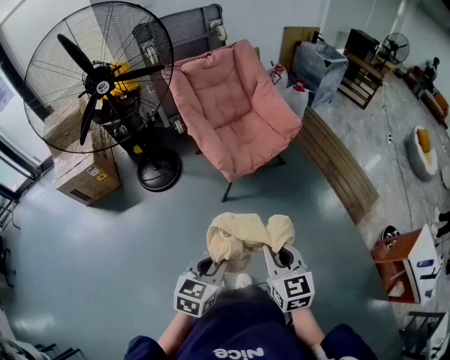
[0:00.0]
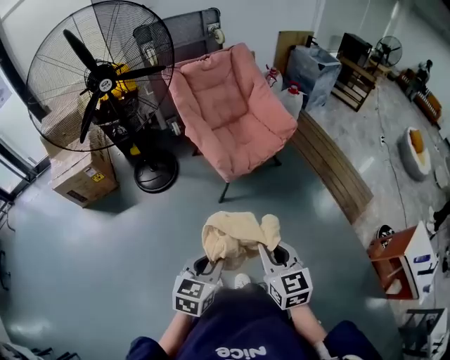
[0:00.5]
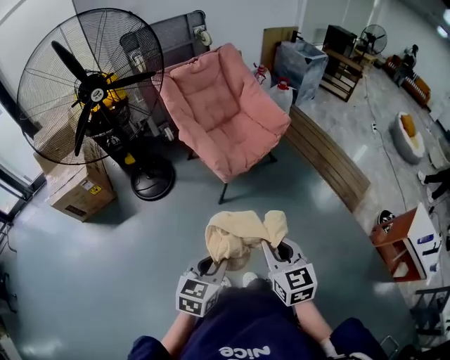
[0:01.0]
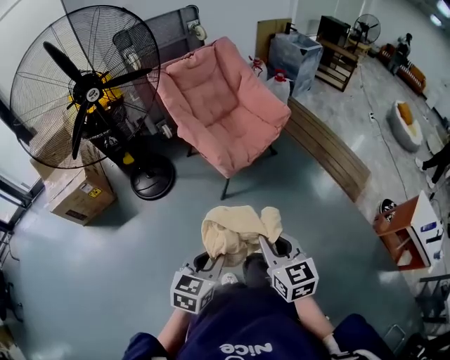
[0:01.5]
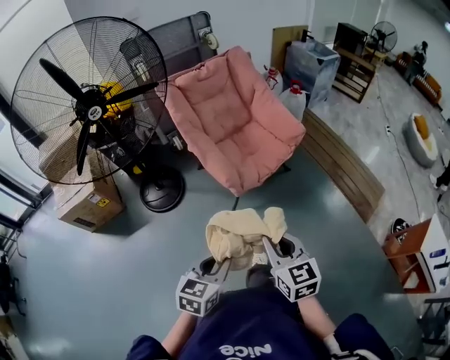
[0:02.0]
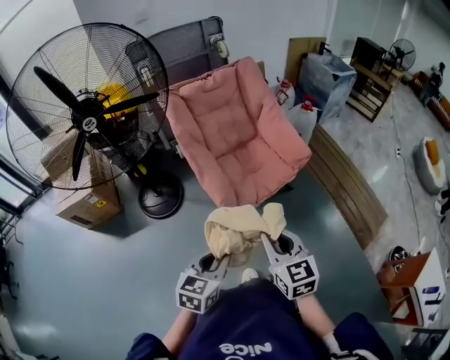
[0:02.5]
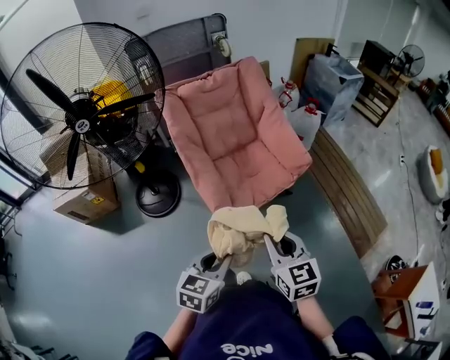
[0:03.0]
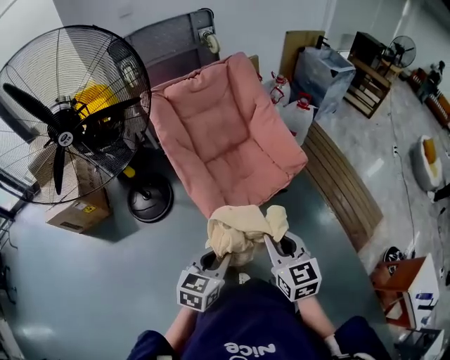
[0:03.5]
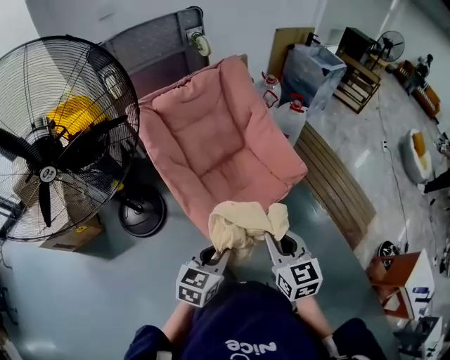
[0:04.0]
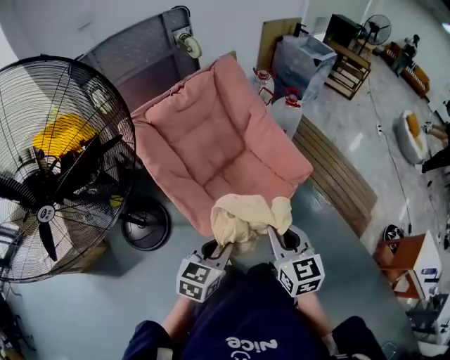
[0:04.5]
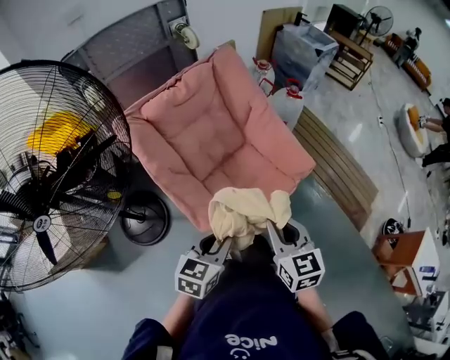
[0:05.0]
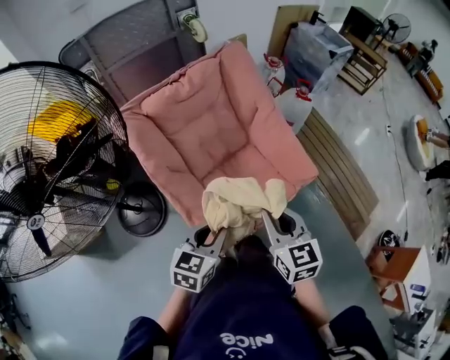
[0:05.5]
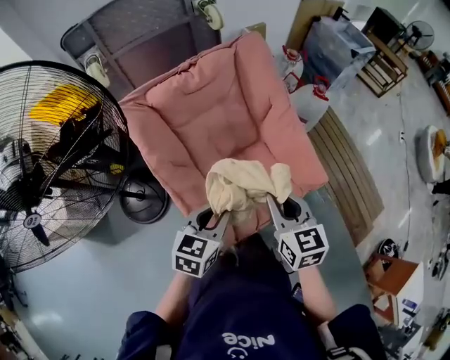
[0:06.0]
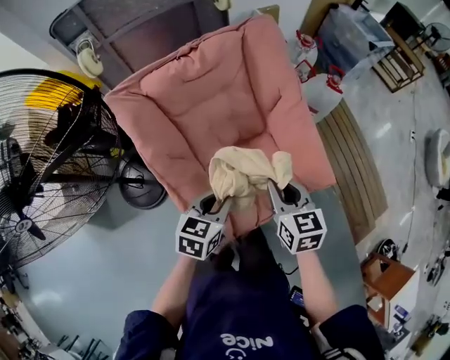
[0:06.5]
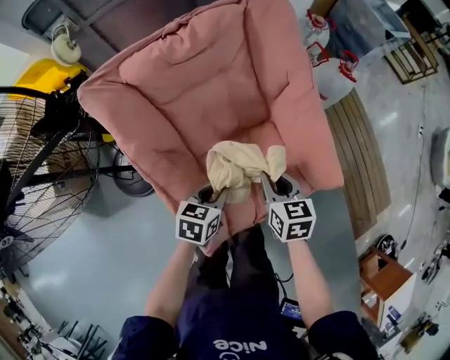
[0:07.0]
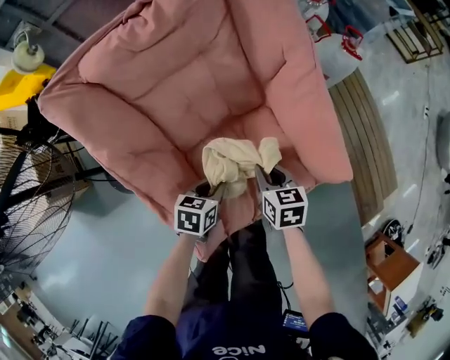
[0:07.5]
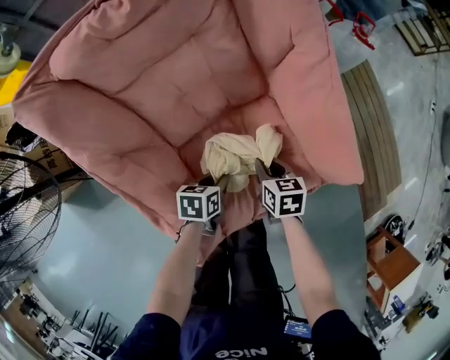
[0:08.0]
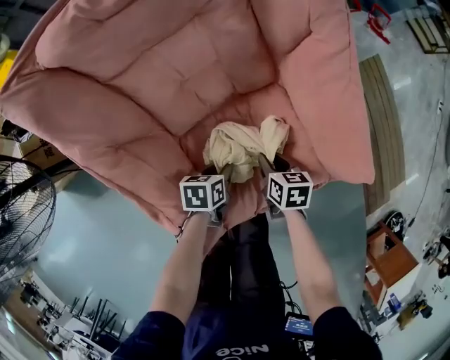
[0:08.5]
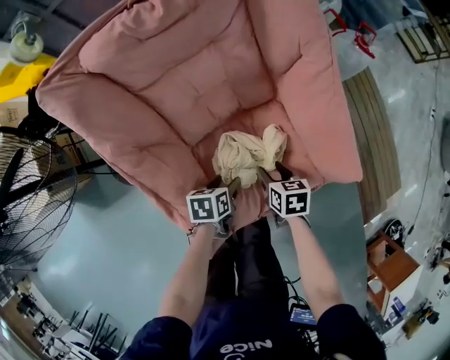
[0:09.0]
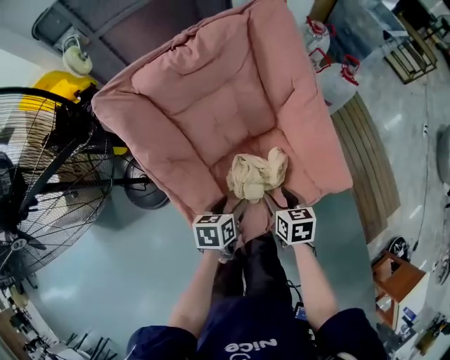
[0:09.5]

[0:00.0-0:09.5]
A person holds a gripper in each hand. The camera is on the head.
0:00.0 to 0:02.0: Both grippers move forward and to the left, approximately 15 cm.
0:02.0 to 0:04.0: The grippers both shift forward by roughly 35 cm.
0:04.0 to 0:05.5: The grippers both shift forward and to the left by approximately 20 cm.
0:05.5 to 0:07.5: Both grippers travel together downward and forward, some 40 cm. The left gripper rotates about 30 degrees, while the right gripper swivels about 30 degrees.
0:07.5 to 0:09.5: The right gripper heads backward, covering about 5 cm, goes downward and returns, roughly 15 cm each way, and opens up; the left gripper goes some 10 cm upward, and opens up.

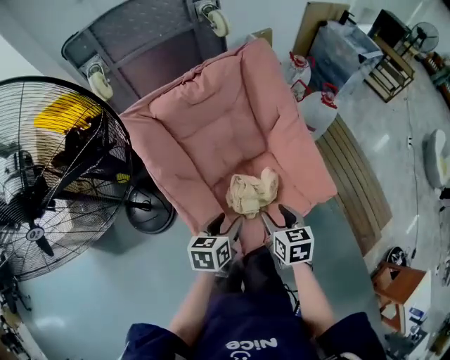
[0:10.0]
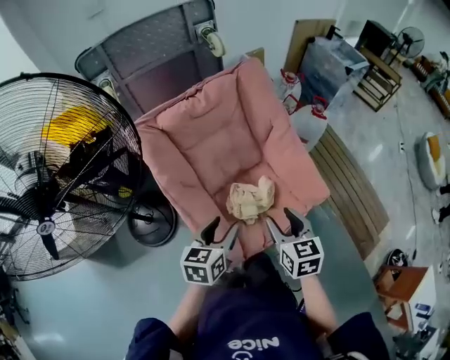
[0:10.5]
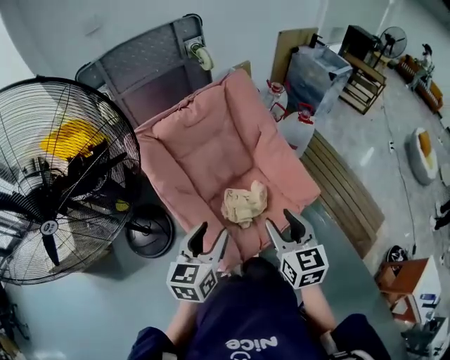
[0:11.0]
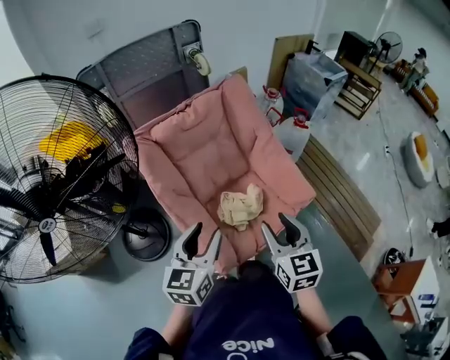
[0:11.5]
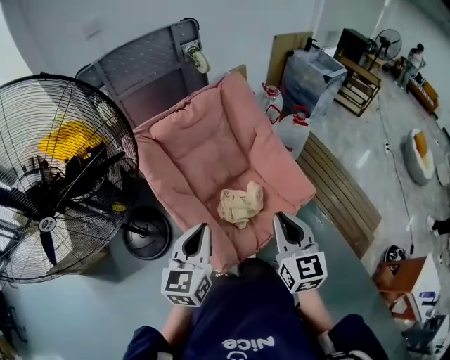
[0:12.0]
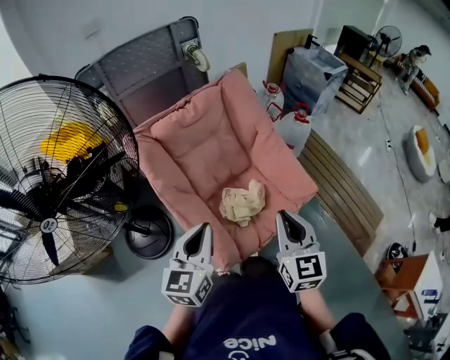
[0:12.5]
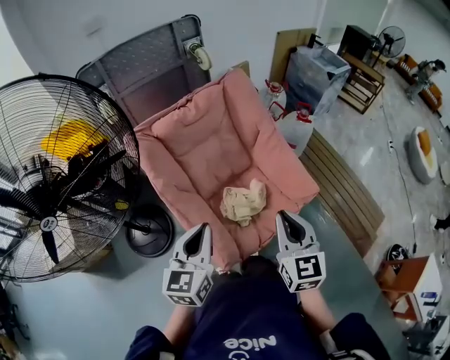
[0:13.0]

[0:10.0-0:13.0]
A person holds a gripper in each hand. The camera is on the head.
0:10.0 to 0:11.5: The two grippers go about 20 cm upward and backward. The left gripper changes its angle by about 30 degrees, while the right gripper turns by about 30 degrees.
0:11.5 to 0:13.0: The right gripper closes. Meanwhile the left gripper closes up.

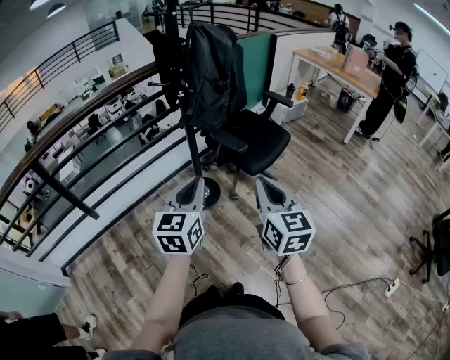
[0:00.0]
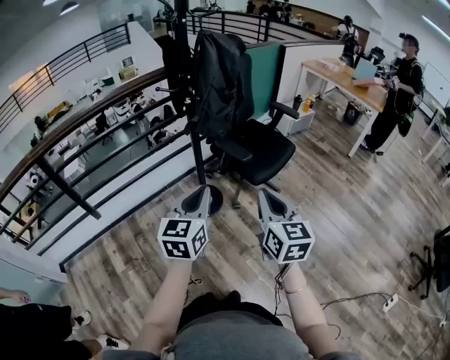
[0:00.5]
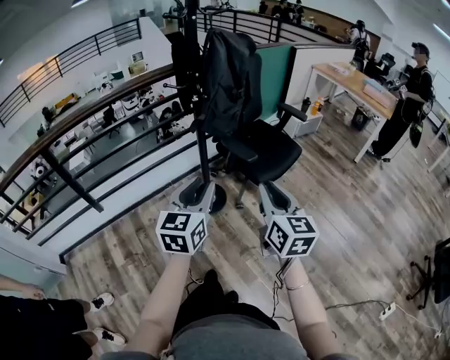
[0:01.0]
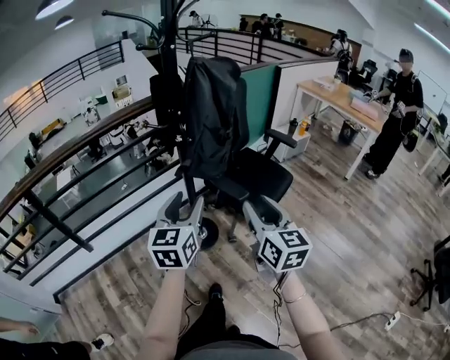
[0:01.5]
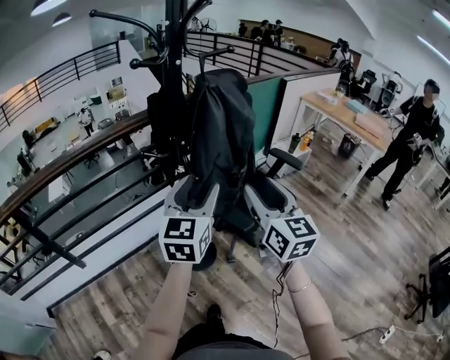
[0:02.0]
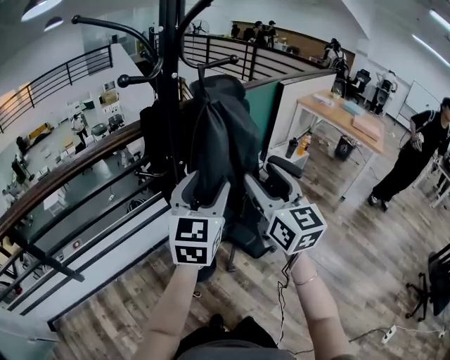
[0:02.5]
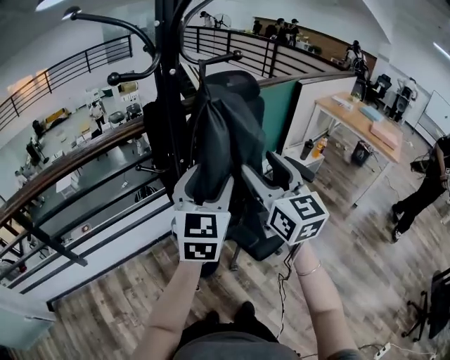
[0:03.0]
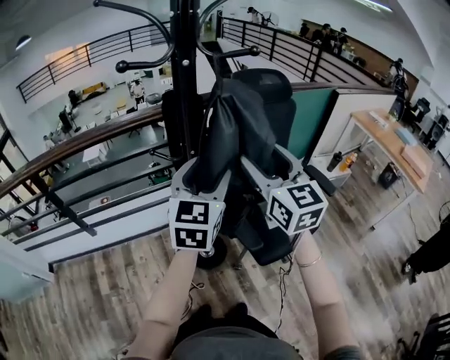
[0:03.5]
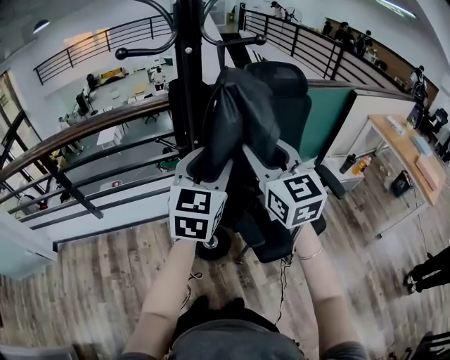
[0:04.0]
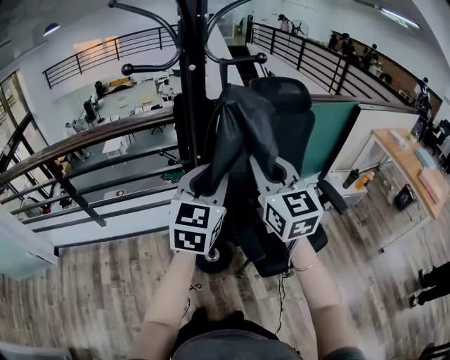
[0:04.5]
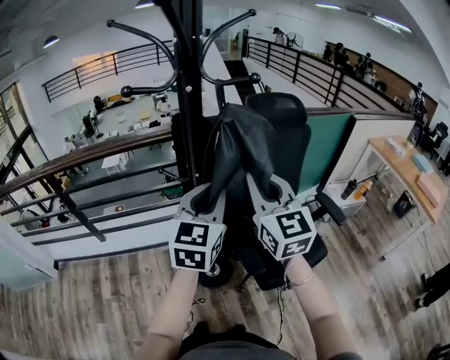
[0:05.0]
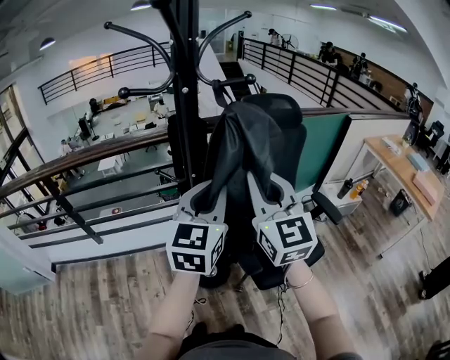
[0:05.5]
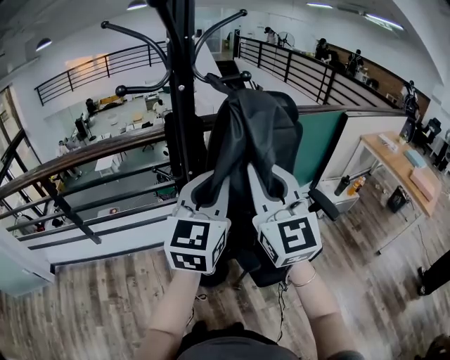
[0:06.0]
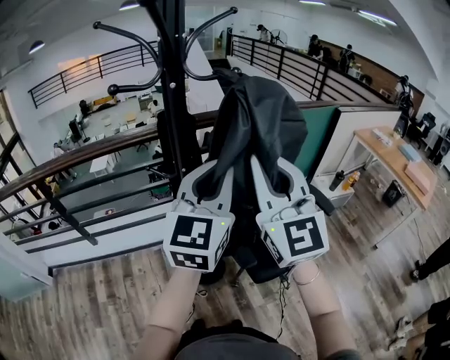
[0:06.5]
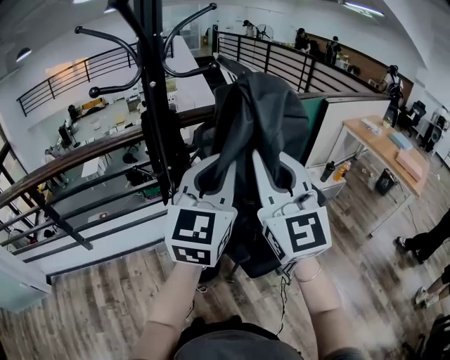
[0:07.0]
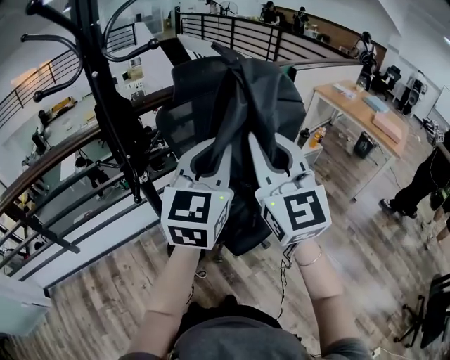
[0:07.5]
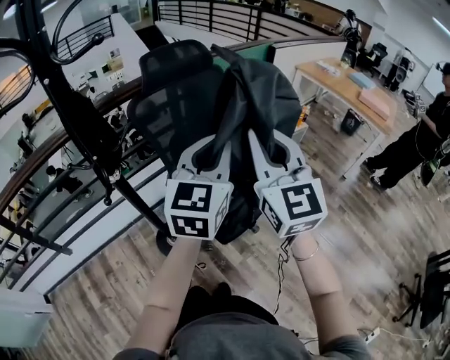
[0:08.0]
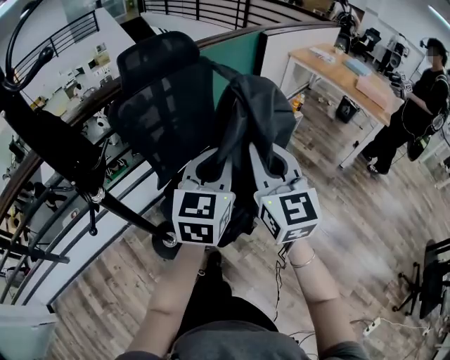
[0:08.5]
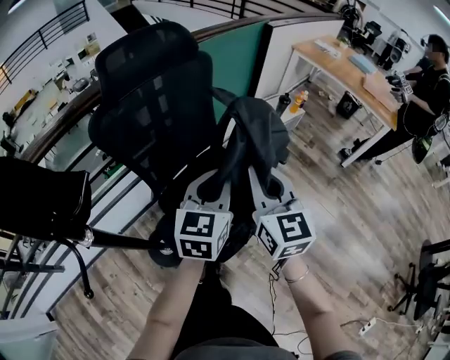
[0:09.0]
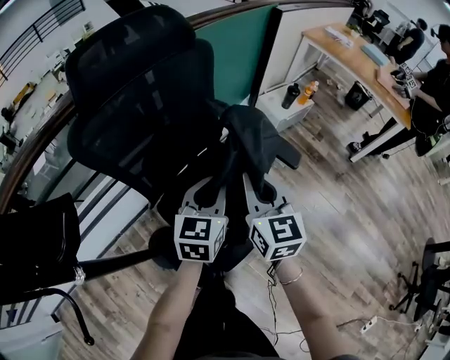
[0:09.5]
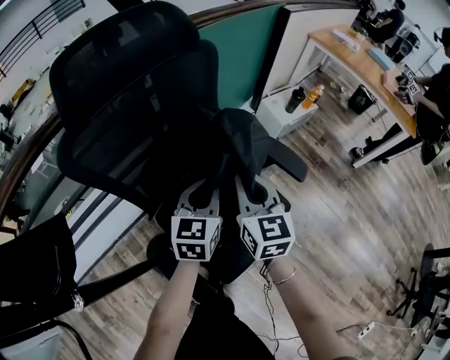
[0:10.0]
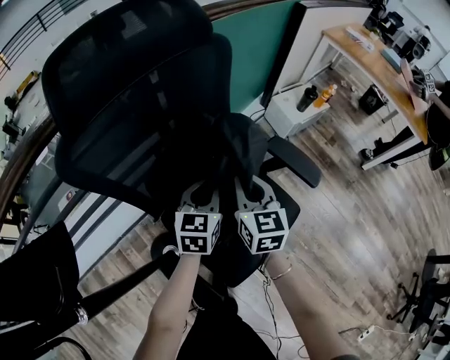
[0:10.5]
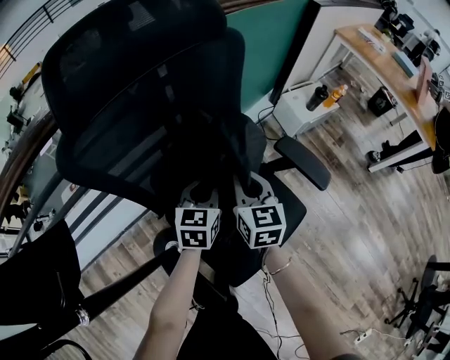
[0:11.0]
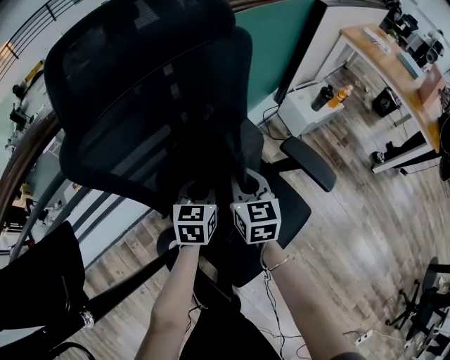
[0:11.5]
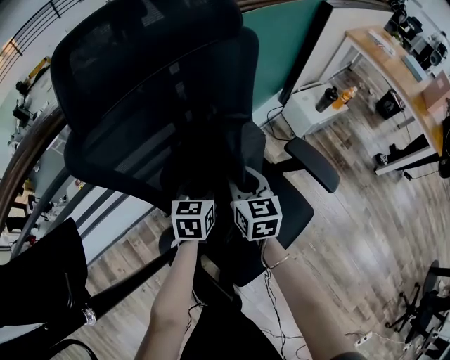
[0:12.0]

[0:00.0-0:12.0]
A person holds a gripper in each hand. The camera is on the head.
0:00.0 to 0:02.0: Both grippers travel together forward, about 30 cm. The left gripper opens; the right gripper opens.
0:02.0 to 0:04.0: The right gripper travels forward by roughly 15 cm, and rotates about 30 degrees, while the left gripper moves forward, about 10 cm, and turns by some 20 degrees.
0:04.0 to 0:06.0: Both grippers move upward, roughly 5 cm. The right gripper closes up, while the left gripper closes up.
0:06.0 to 0:08.0: The two grippers go some 20 cm to the right. The right gripper swivels some 20 degrees. Meanwhile the left gripper swivels roughly 20 degrees.
0:08.0 to 0:10.0: The two grippers go approximately 40 cm downward and forward. The right gripper swivels some 30 degrees. The left gripper turns by approximately 20 degrees.
0:10.0 to 0:12.0: Both grippers move downward, to the left and forward, about 15 cm.

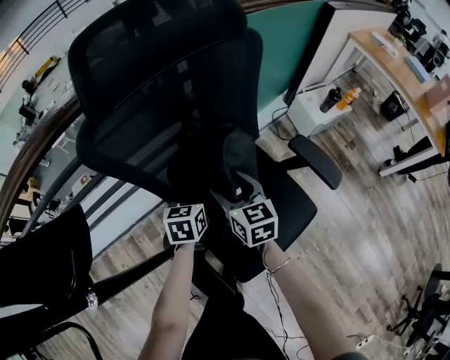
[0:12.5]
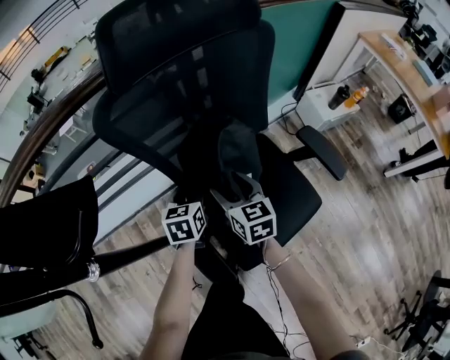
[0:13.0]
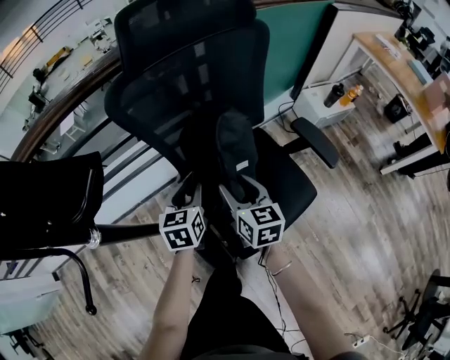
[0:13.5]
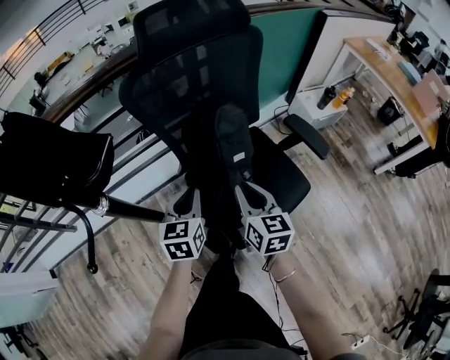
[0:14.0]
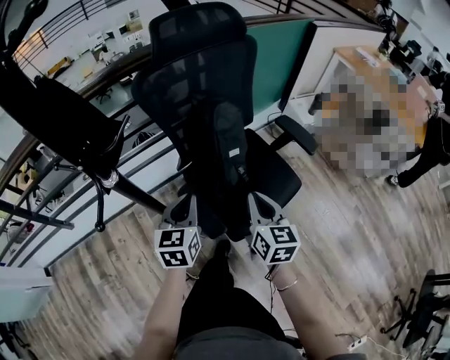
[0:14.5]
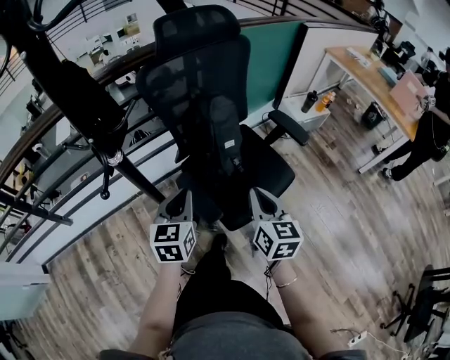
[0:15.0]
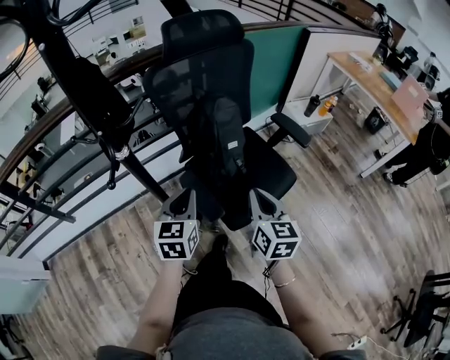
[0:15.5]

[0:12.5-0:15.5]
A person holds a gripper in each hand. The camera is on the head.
0:12.5 to 0:14.0: The right gripper goes about 20 cm backward, and closes its fingers. Meanwhile the left gripper travels backward and upward by some 20 cm, and closes up.
0:14.0 to 0:15.5: The left gripper heads backward and upward, covering approximately 15 cm. The right gripper is displaced backward by about 15 cm.
